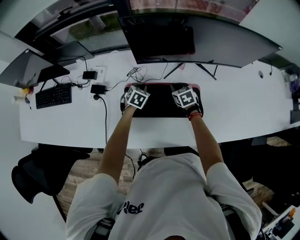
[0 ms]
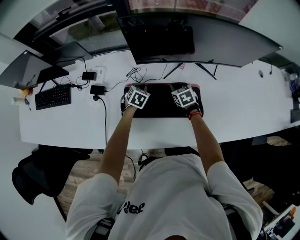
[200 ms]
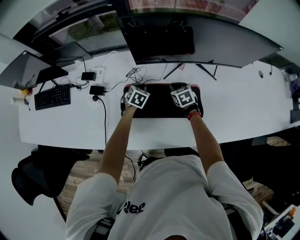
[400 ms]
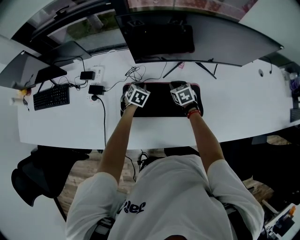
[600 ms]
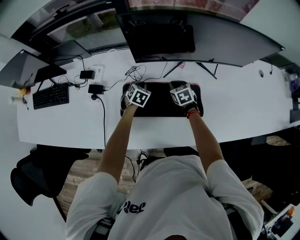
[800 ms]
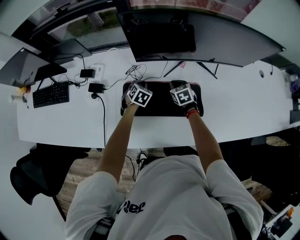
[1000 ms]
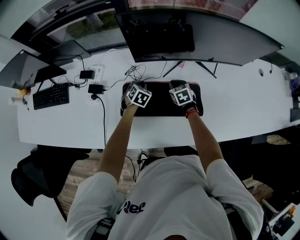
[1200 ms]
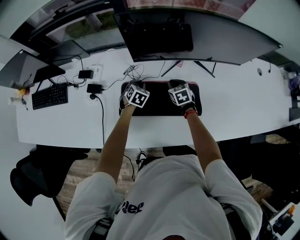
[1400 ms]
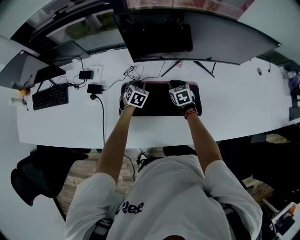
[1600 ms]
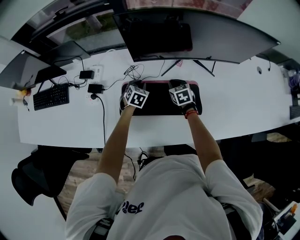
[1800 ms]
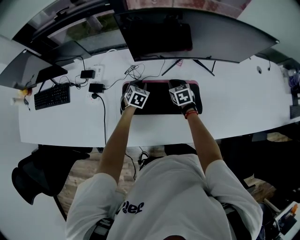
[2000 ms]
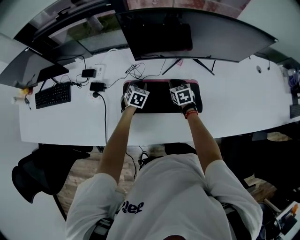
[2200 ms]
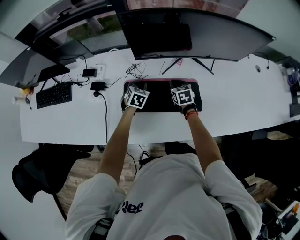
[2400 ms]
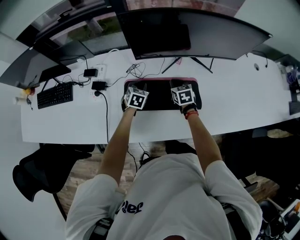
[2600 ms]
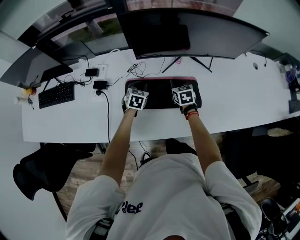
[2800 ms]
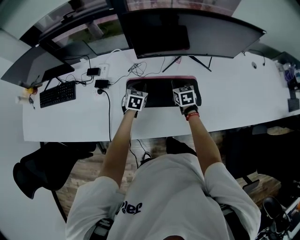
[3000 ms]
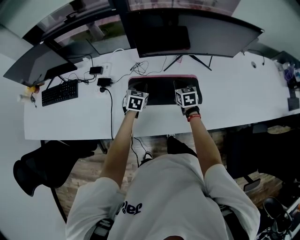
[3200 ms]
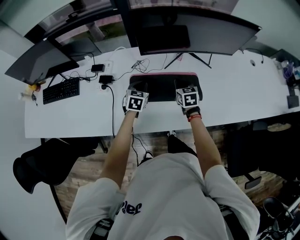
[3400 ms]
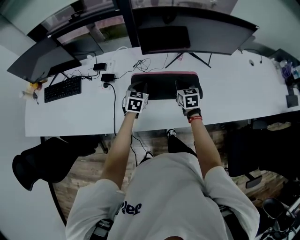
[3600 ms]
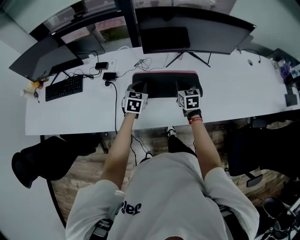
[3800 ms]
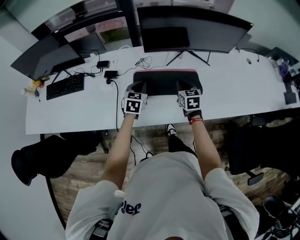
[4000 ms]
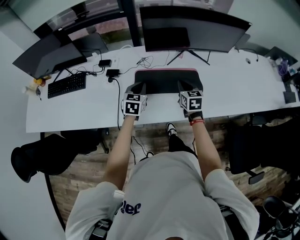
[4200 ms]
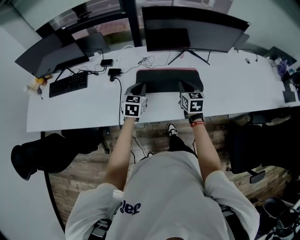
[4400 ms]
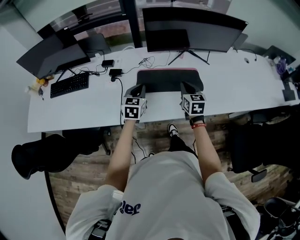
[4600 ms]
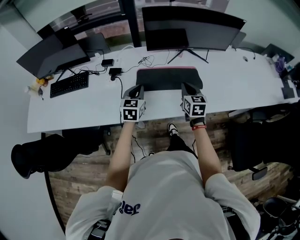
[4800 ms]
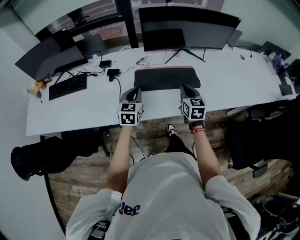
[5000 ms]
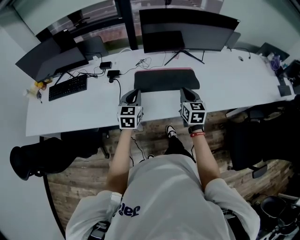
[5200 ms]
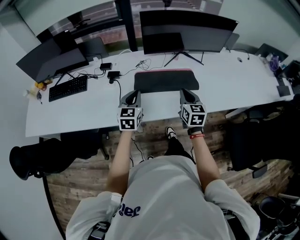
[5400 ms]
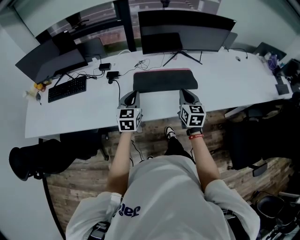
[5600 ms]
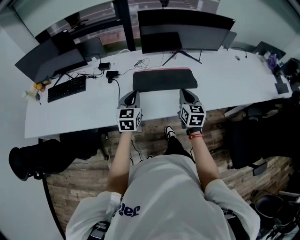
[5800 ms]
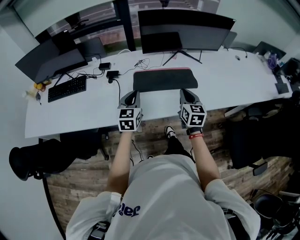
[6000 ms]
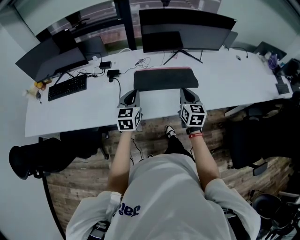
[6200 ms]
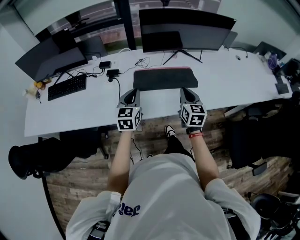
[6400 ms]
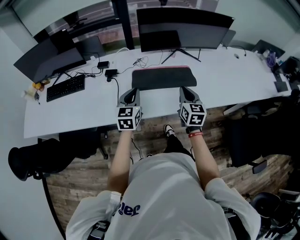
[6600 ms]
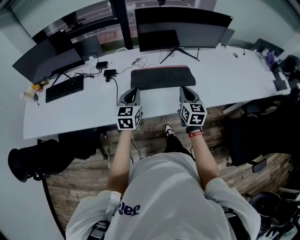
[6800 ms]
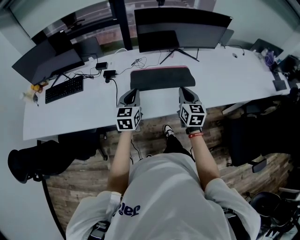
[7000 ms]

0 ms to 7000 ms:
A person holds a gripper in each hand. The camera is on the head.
0 ms to 1400 ms: The grippers move only a little.
1400 ms to 2800 ms: The two grippers go some 10 cm upward and backward.
2800 ms to 4200 ms: Both grippers travel together backward and upward, approximately 20 cm.
4200 ms to 5600 ms: Both grippers move backward and upward, approximately 15 cm.
5600 ms to 7000 ms: The grippers make only small movements.

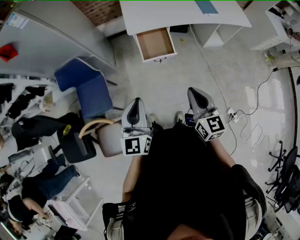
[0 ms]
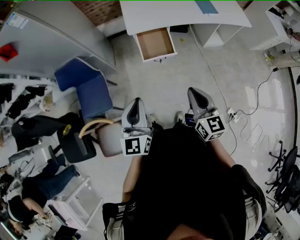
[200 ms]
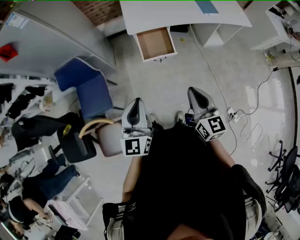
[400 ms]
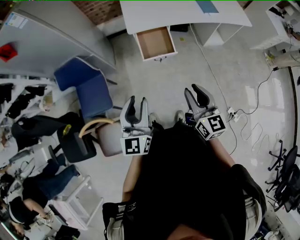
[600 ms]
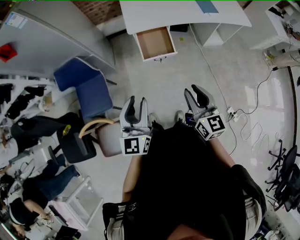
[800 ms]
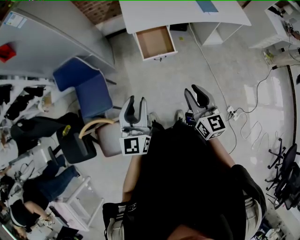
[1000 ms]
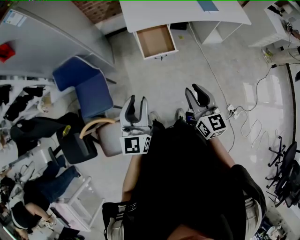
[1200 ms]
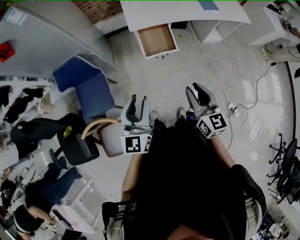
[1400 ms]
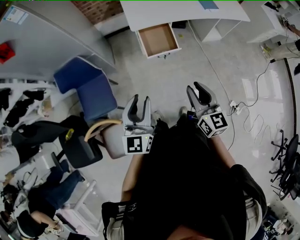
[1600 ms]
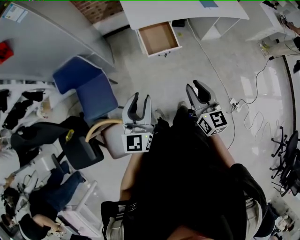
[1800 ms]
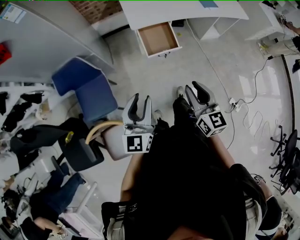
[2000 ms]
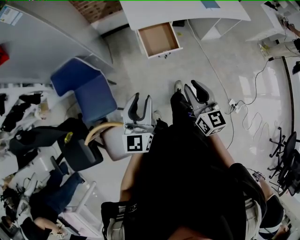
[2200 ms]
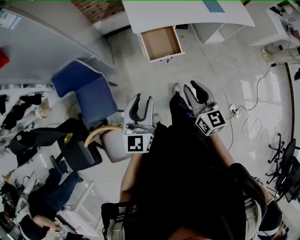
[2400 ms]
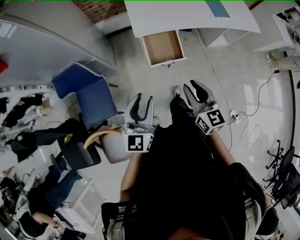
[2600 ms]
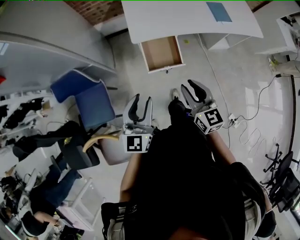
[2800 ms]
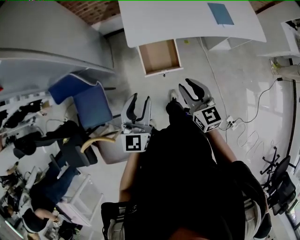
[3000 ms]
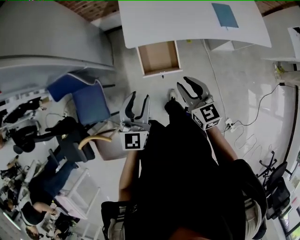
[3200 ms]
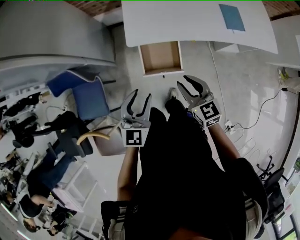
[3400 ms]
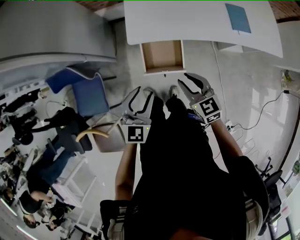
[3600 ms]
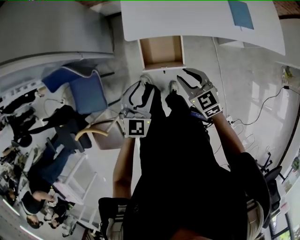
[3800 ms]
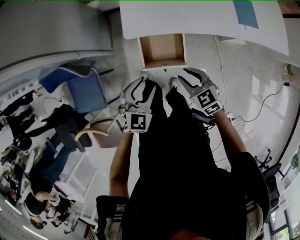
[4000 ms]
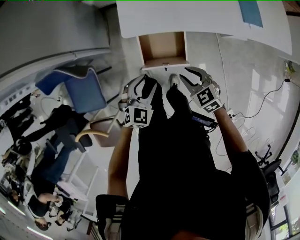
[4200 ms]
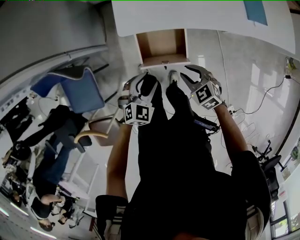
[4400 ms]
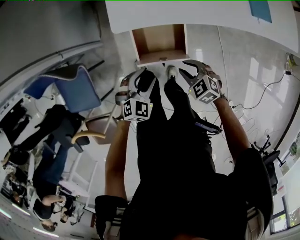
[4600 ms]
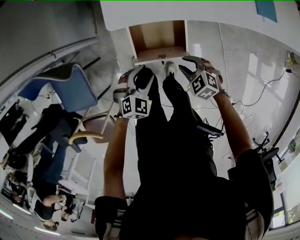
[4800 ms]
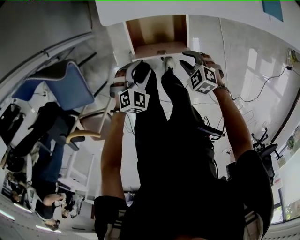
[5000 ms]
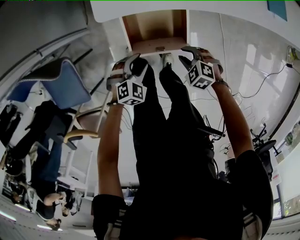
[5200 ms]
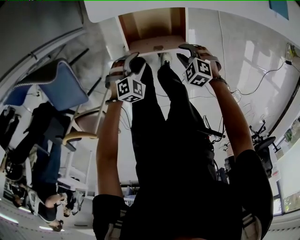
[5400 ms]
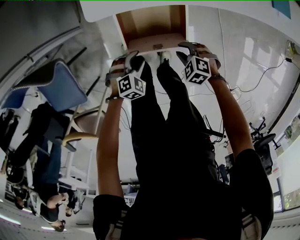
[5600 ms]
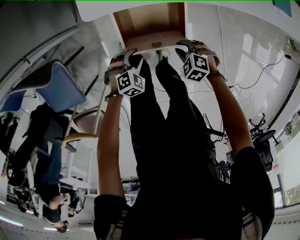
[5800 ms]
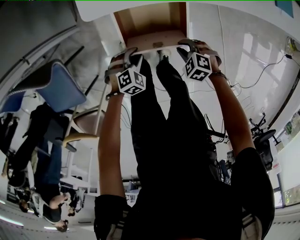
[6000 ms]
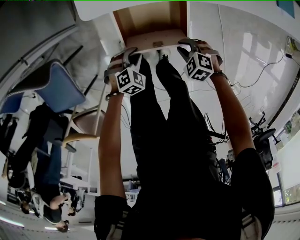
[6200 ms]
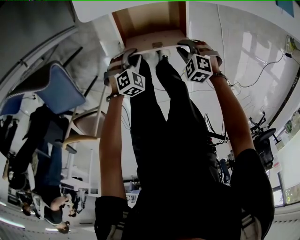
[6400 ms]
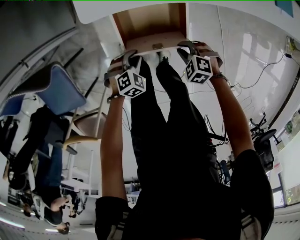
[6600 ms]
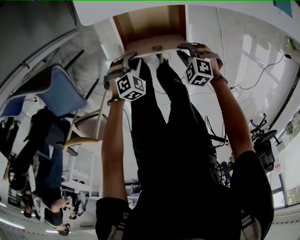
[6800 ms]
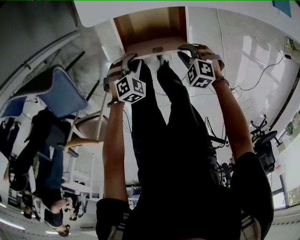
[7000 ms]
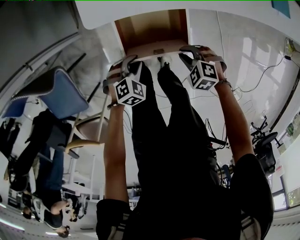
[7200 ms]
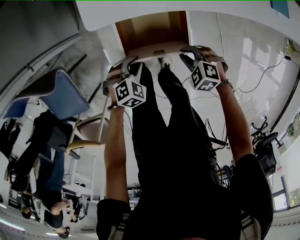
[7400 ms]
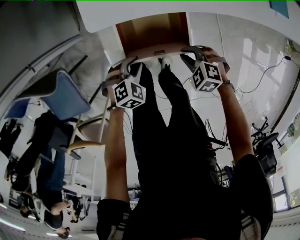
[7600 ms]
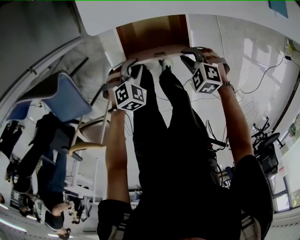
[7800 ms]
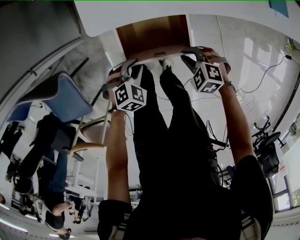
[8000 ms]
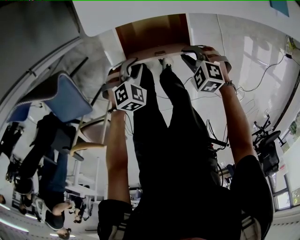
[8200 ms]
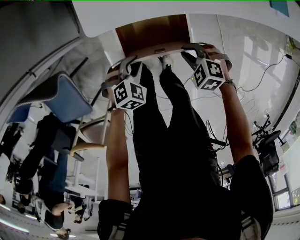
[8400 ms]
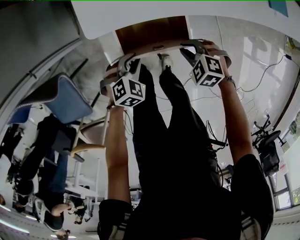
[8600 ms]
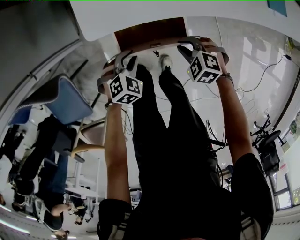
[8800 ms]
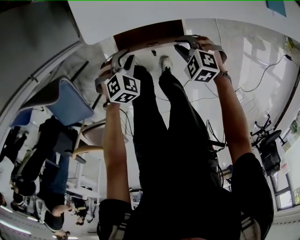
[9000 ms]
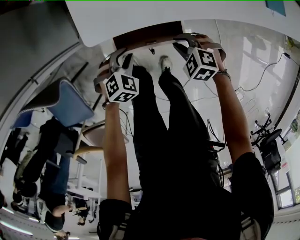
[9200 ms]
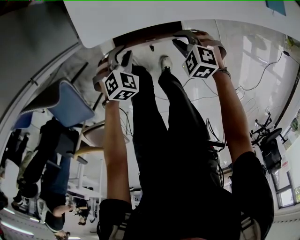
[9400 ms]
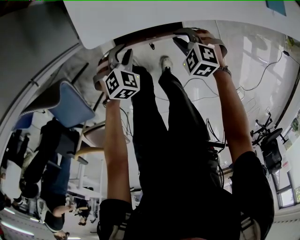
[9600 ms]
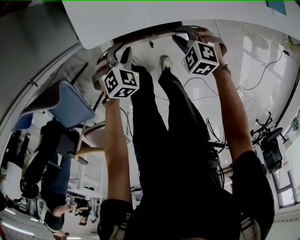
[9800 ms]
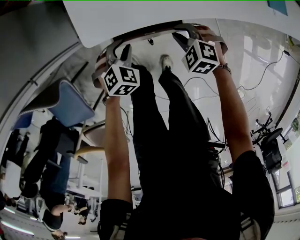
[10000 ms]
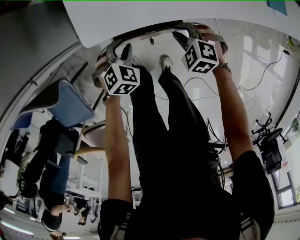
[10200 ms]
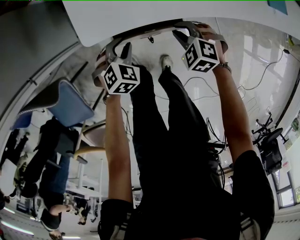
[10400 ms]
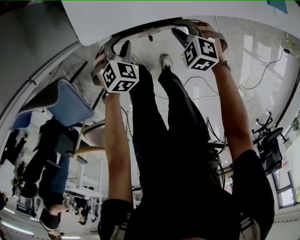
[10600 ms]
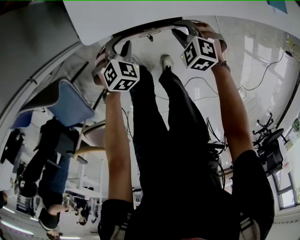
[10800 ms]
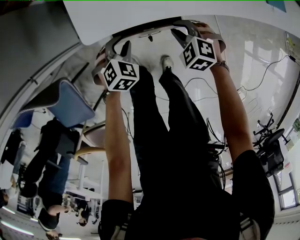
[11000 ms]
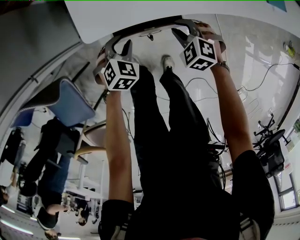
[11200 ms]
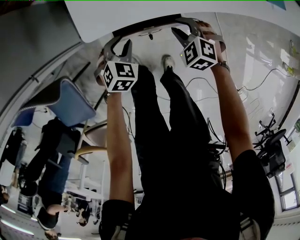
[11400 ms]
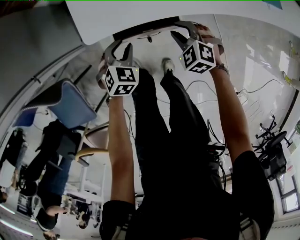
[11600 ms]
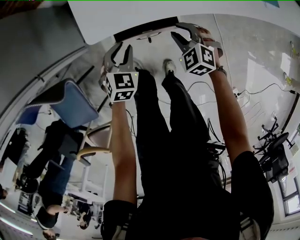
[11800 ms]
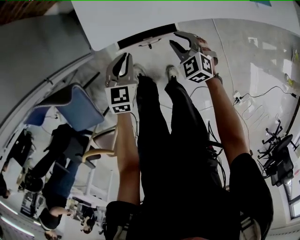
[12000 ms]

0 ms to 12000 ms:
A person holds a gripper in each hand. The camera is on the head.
0 ms to 1600 ms: Both grippers move to the left, about 5 cm. The right gripper opens up; the left gripper opens its fingers.
1600 ms to 3000 ms: Both grippers travel together forward, some 20 cm.
3000 ms to 4400 ms: The grippers both shift downward and forward by some 25 cm. The left gripper points its fingers roughly 40 degrees further downward. The right gripper tilts its fingers roughly 30 degrees downward.
4400 ms to 6000 ms: The two grippers go about 25 cm downward. The left gripper rotates some 30 degrees, while the right gripper rotates some 30 degrees.
6000 ms to 7600 ms: The two grippers go roughly 5 cm upward.
7600 ms to 9000 ms: The grippers both shift forward by about 5 cm.
9000 ms to 10400 ms: The two grippers go some 5 cm forward.
10400 ms to 12000 ms: The left gripper is displaced upward by about 10 cm, and swivels approximately 30 degrees. The right gripper shifts about 5 cm upward, and turns by approximately 30 degrees.

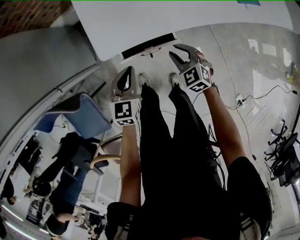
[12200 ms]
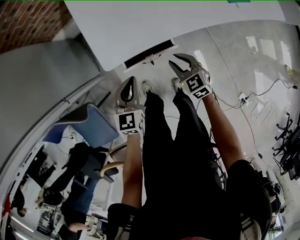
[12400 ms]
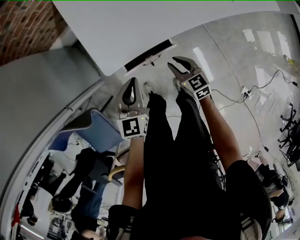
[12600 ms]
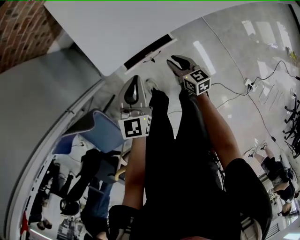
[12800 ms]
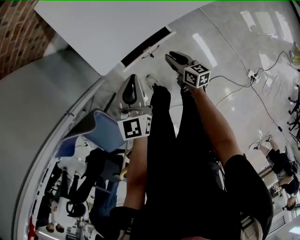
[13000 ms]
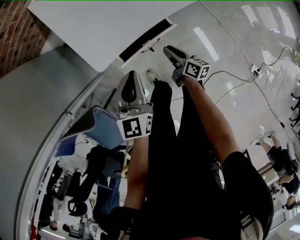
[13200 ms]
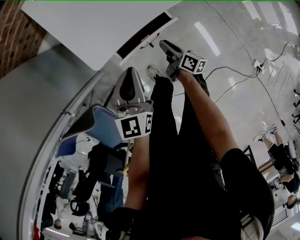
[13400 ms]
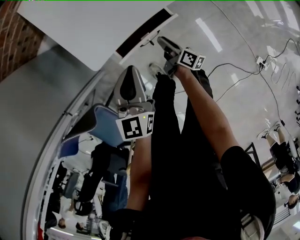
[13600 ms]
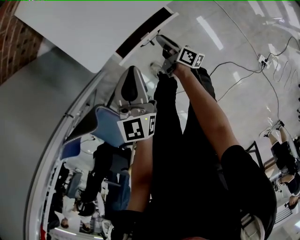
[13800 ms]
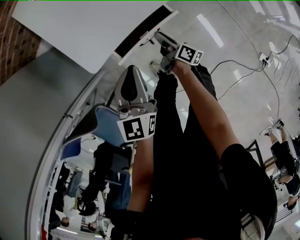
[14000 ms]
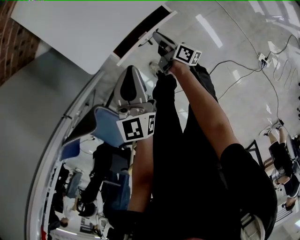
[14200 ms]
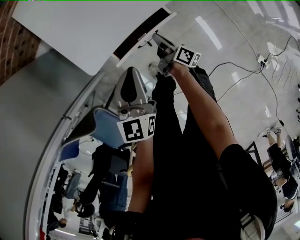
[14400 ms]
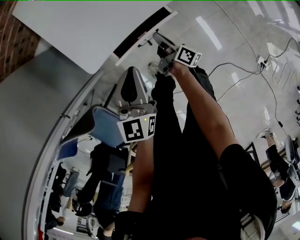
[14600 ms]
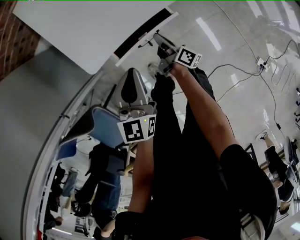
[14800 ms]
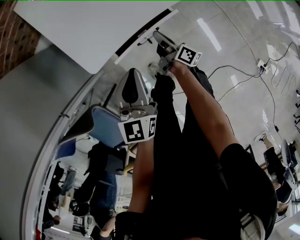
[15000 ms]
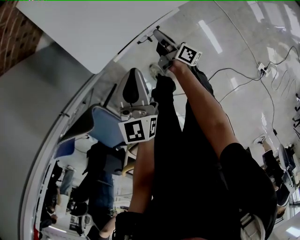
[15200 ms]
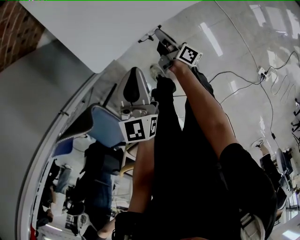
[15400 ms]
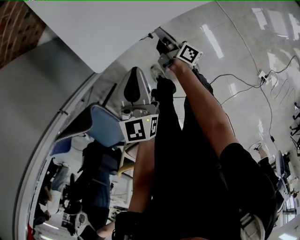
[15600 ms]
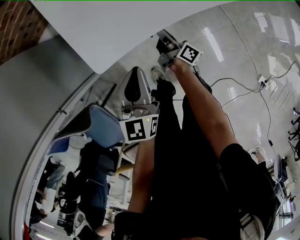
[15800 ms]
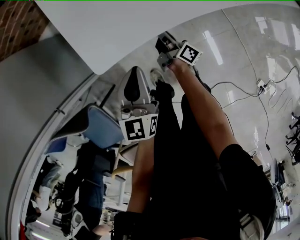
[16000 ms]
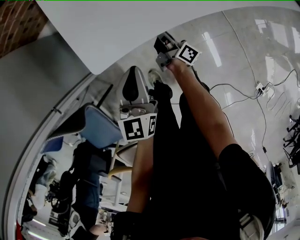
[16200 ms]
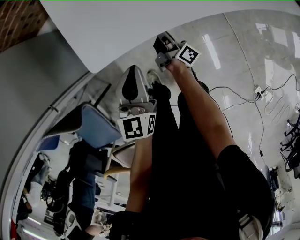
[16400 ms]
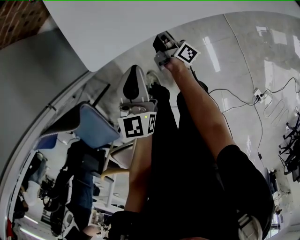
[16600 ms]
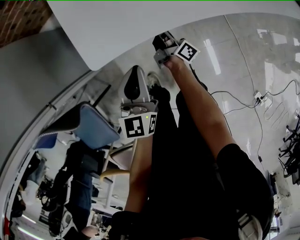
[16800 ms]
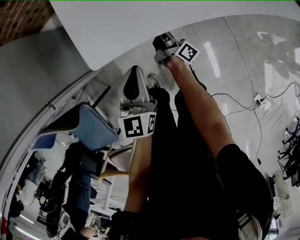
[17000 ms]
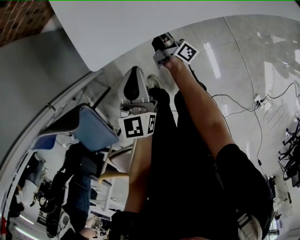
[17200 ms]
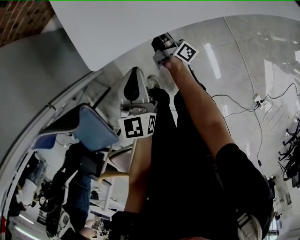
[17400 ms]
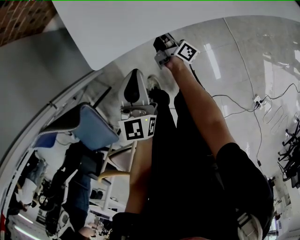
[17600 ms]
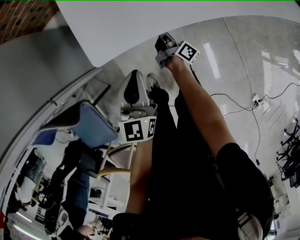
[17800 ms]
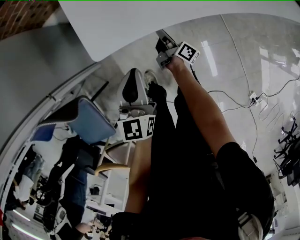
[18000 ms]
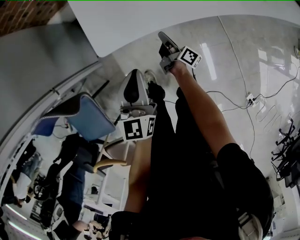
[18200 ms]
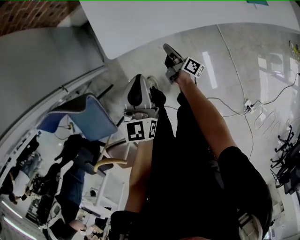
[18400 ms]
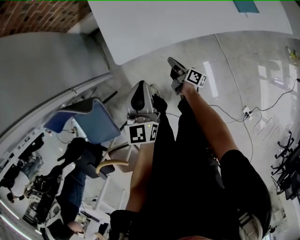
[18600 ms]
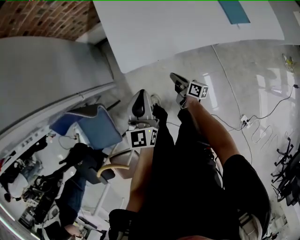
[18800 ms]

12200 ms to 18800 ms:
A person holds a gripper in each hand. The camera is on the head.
12200 ms to 13800 ms: The right gripper travels downward by approximately 20 cm, and twists approximately 100 degrees clockwise, seen from behind.
13800 ms to 15400 ms: The right gripper heads forward, covering some 5 cm.
15400 ms to 17200 ms: The right gripper shifts approximately 10 cm forward.
17200 ms to 18800 ms: The right gripper moves backward and upward, approximately 15 cm, and rotates some 40 degrees, while the left gripper shifts some 20 cm upward.
